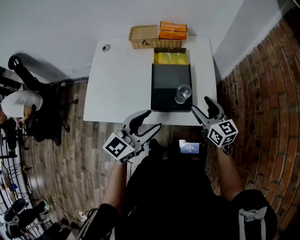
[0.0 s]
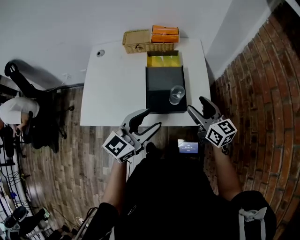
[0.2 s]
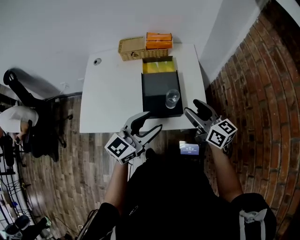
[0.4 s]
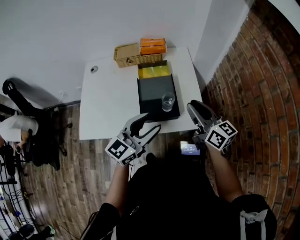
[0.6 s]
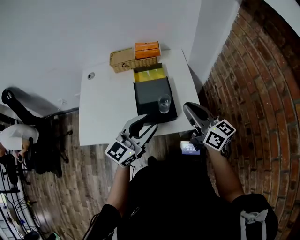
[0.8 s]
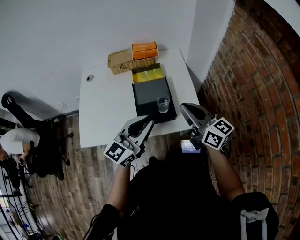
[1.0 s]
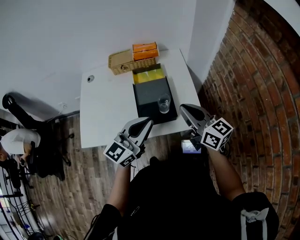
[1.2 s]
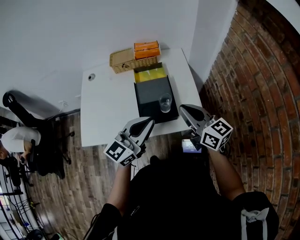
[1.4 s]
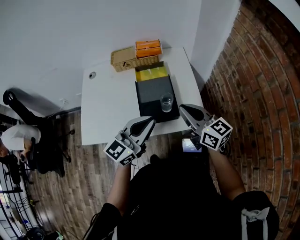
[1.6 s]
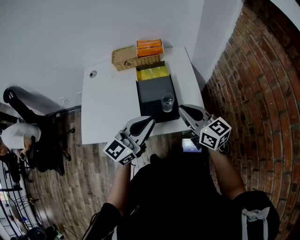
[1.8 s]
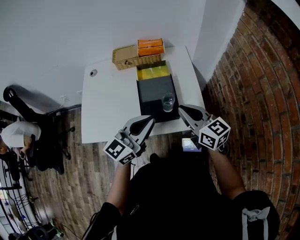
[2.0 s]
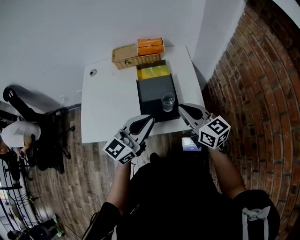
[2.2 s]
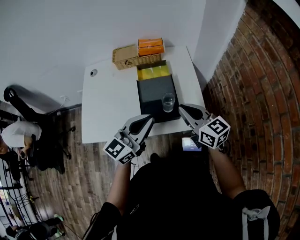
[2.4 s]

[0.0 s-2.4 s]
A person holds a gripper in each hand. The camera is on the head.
0.0 to 1.2 s: The right gripper travels upward by approximately 10 cm, and closes. Meanwhile the left gripper changes place by roughly 5 cm, and closes up.
1.2 to 2.4 s: The grippers move only a little.

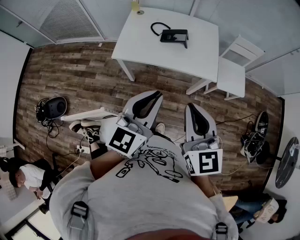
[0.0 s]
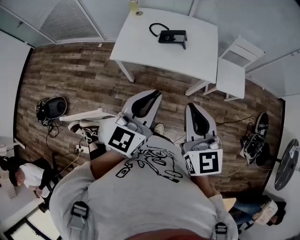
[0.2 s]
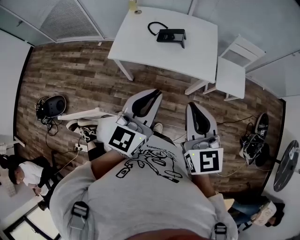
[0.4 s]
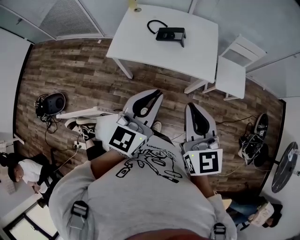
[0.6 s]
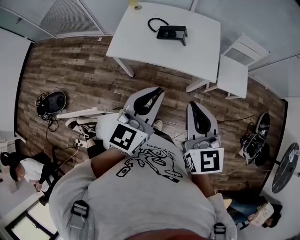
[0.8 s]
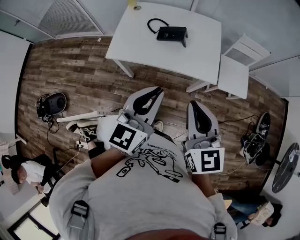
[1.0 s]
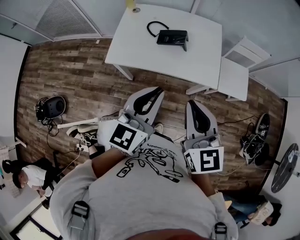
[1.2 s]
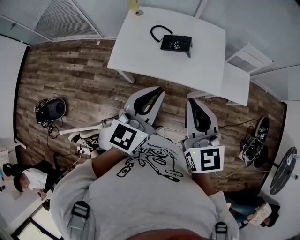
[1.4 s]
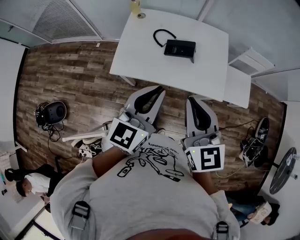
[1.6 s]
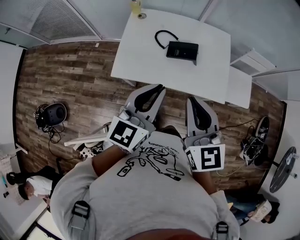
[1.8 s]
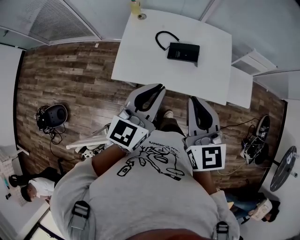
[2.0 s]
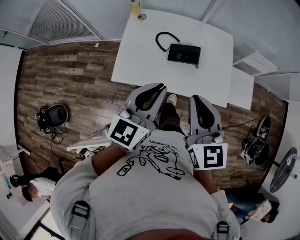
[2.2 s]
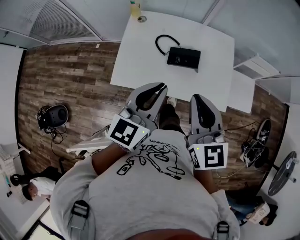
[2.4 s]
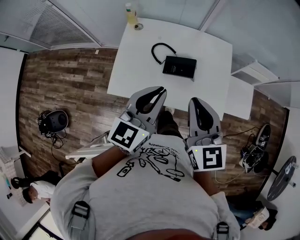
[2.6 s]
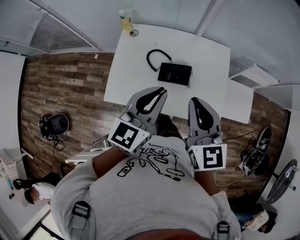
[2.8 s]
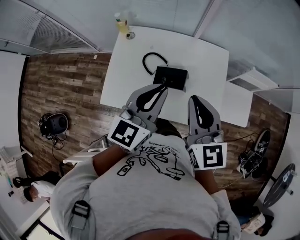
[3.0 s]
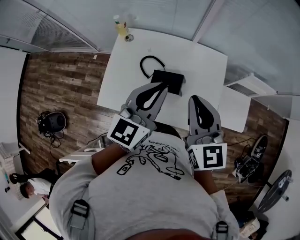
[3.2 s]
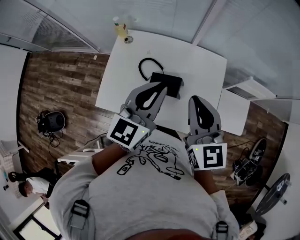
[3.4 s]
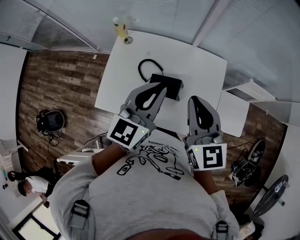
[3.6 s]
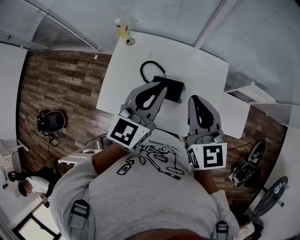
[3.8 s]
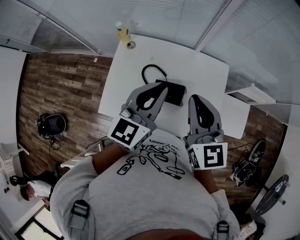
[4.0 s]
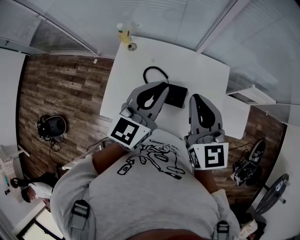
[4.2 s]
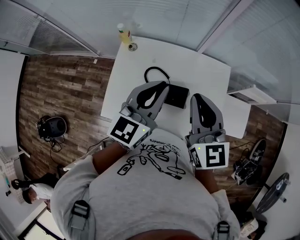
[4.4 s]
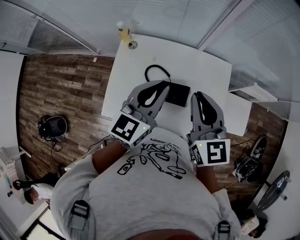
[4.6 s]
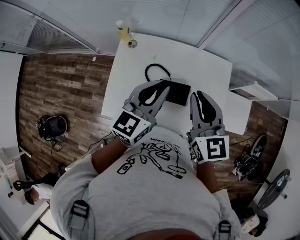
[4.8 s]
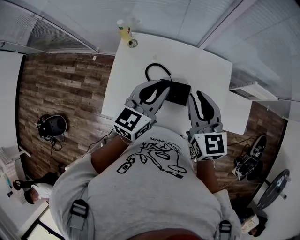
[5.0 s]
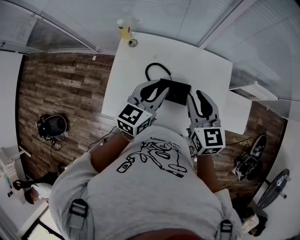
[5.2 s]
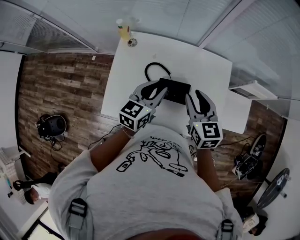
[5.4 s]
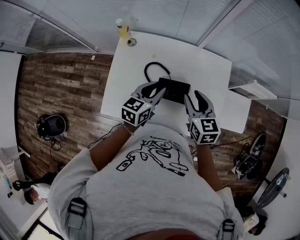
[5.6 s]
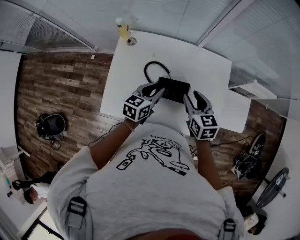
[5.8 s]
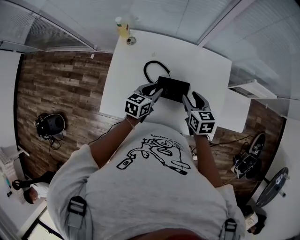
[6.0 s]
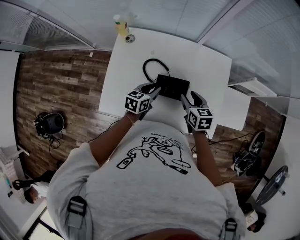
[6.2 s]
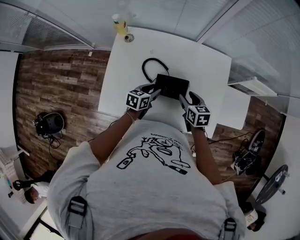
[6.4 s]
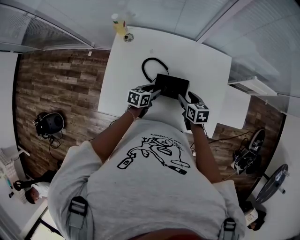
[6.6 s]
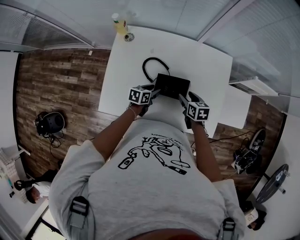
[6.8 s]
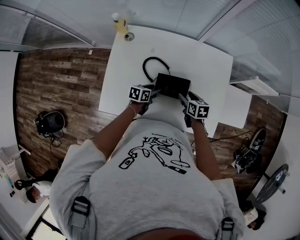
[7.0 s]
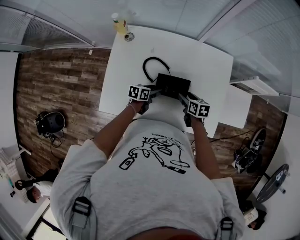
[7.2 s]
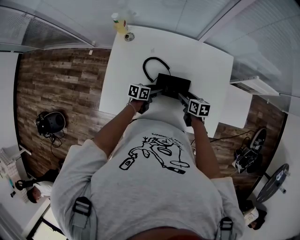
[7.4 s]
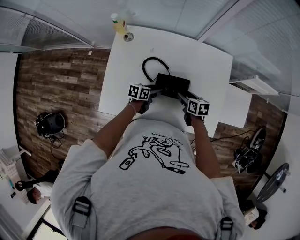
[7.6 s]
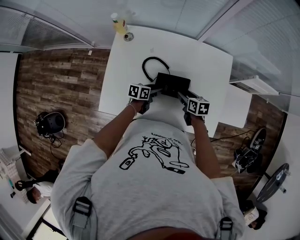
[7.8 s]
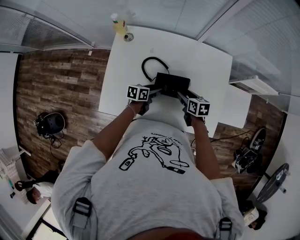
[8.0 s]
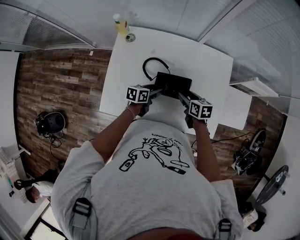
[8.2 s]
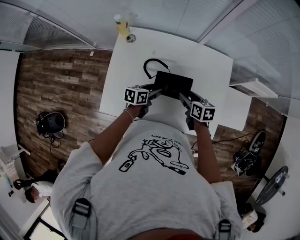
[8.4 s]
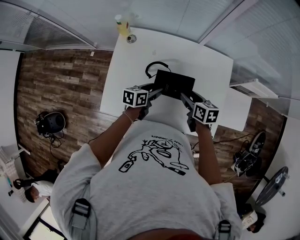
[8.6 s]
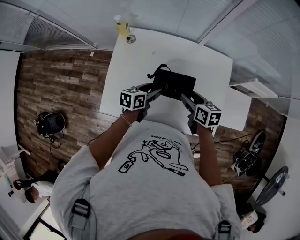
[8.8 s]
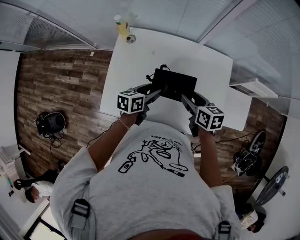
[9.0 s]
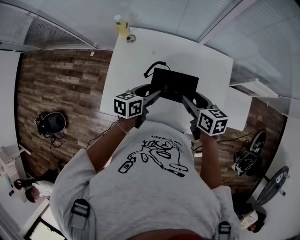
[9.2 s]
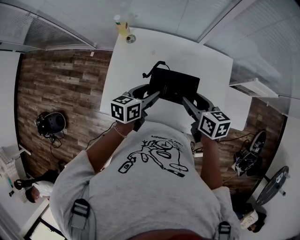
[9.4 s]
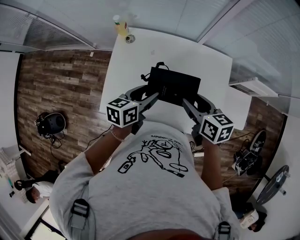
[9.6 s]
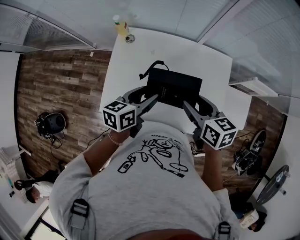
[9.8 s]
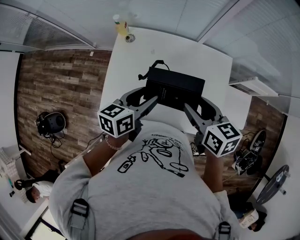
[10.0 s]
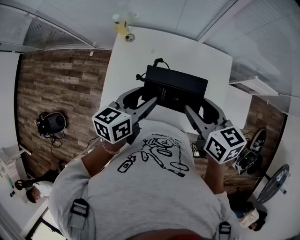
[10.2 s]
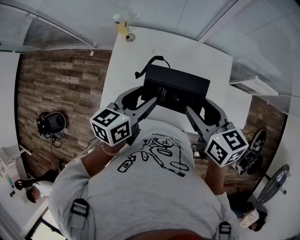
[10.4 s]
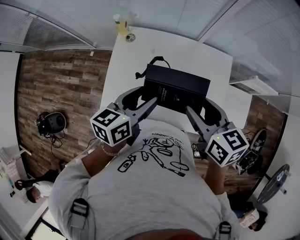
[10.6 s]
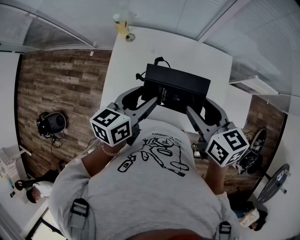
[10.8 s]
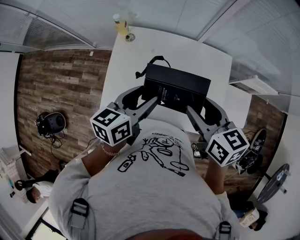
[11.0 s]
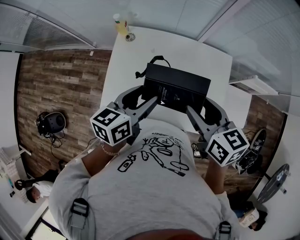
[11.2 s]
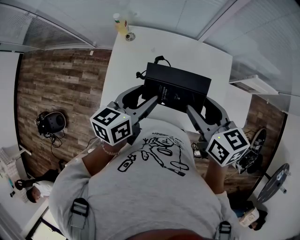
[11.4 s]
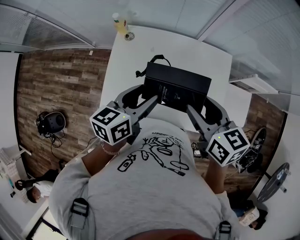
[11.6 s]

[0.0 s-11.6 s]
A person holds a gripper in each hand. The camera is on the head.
0.0 to 1.4 s: The grippers both shift forward by about 15 cm.
1.4 to 2.8 s: Both grippers travel together forward, about 25 cm.
2.8 to 4.4 s: Both grippers travel together forward, some 15 cm.
4.4 to 5.8 s: Both grippers move downward, about 20 cm. The right gripper rotates approximately 30 degrees, and opens its fingers; the left gripper turns by roughly 30 degrees.
5.8 to 7.2 s: The two grippers go roughly 20 cm downward. The left gripper rotates roughly 30 degrees, and opens its fingers. Meanwhile the right gripper rotates about 30 degrees, and opens.
7.2 to 8.8 s: Both grippers travel together upward, about 15 cm.
8.8 to 10.2 s: The two grippers go about 20 cm upward.
10.2 to 11.6 s: The grippers stay close to where they were, moving slightly.

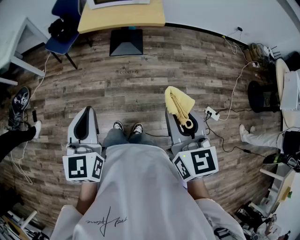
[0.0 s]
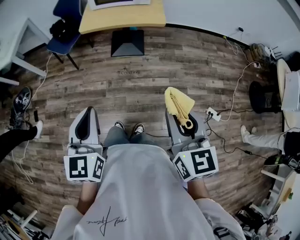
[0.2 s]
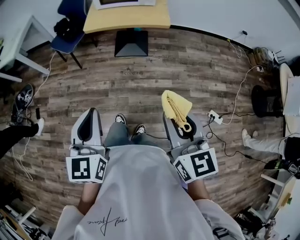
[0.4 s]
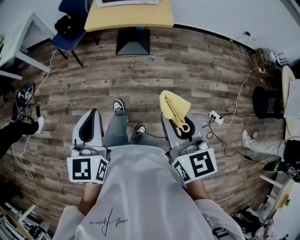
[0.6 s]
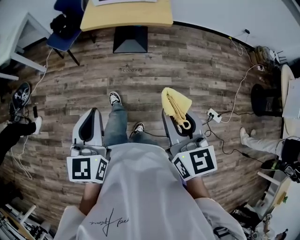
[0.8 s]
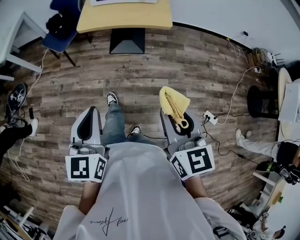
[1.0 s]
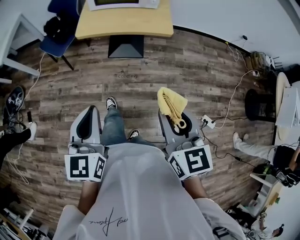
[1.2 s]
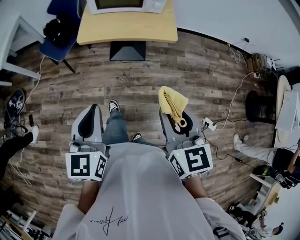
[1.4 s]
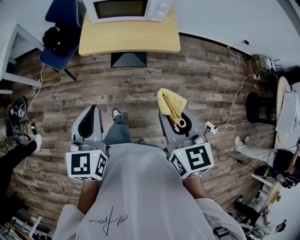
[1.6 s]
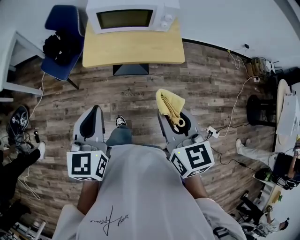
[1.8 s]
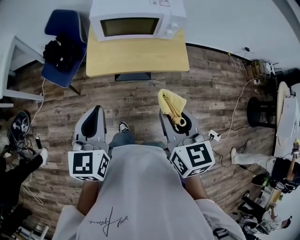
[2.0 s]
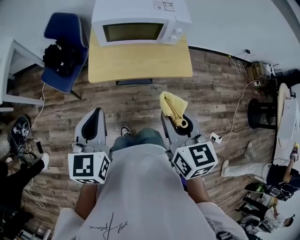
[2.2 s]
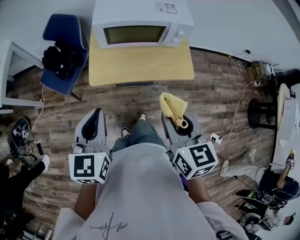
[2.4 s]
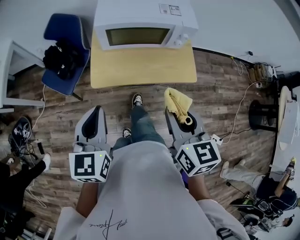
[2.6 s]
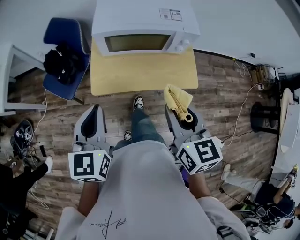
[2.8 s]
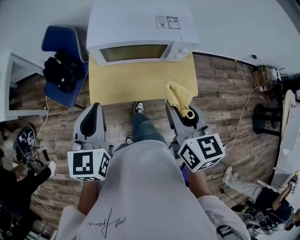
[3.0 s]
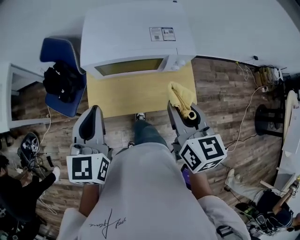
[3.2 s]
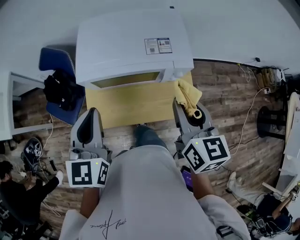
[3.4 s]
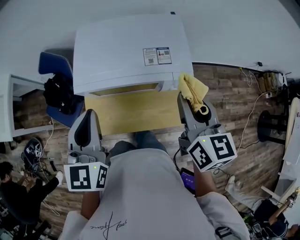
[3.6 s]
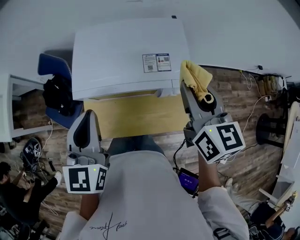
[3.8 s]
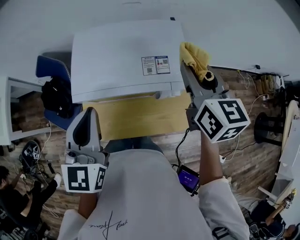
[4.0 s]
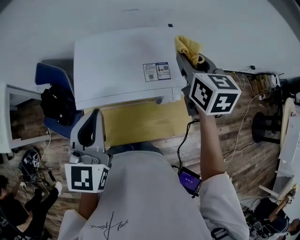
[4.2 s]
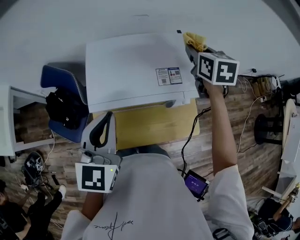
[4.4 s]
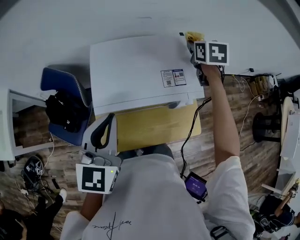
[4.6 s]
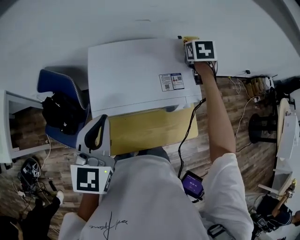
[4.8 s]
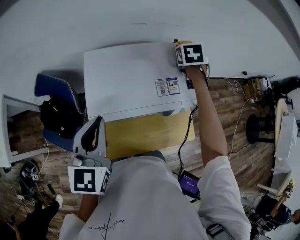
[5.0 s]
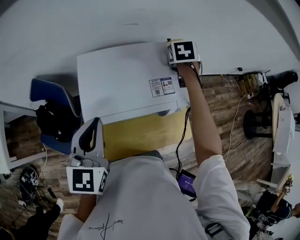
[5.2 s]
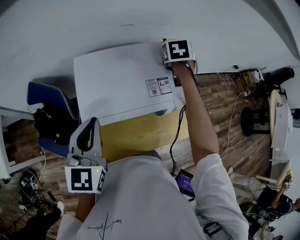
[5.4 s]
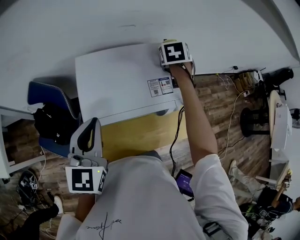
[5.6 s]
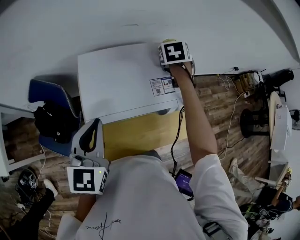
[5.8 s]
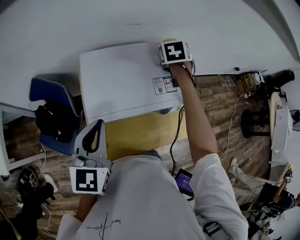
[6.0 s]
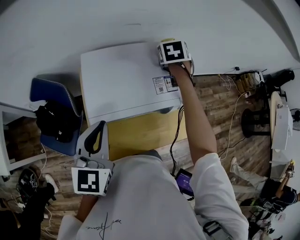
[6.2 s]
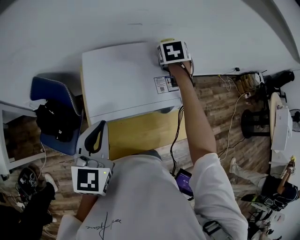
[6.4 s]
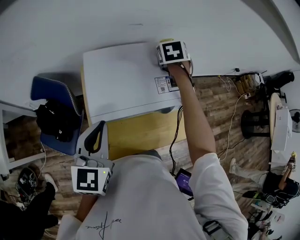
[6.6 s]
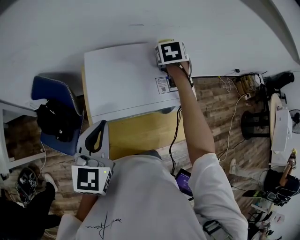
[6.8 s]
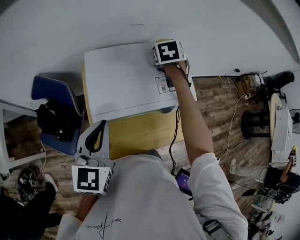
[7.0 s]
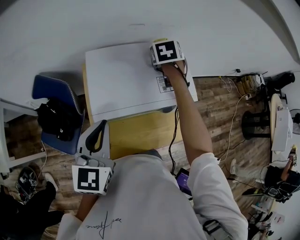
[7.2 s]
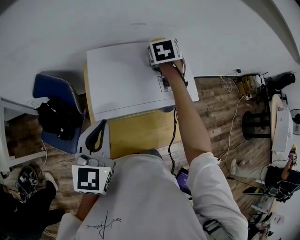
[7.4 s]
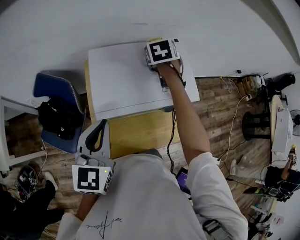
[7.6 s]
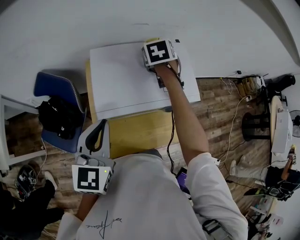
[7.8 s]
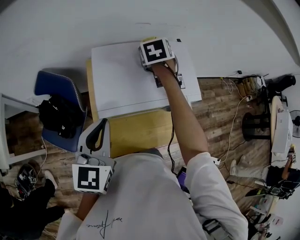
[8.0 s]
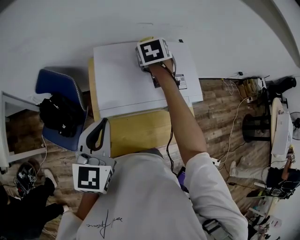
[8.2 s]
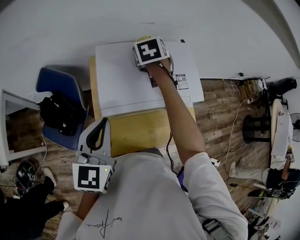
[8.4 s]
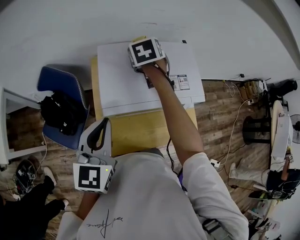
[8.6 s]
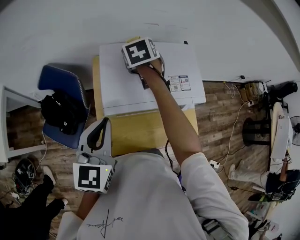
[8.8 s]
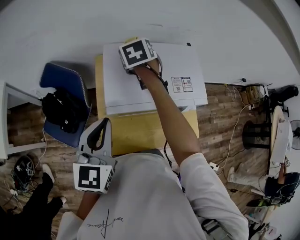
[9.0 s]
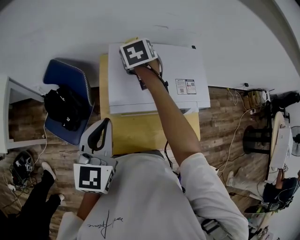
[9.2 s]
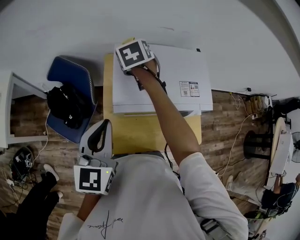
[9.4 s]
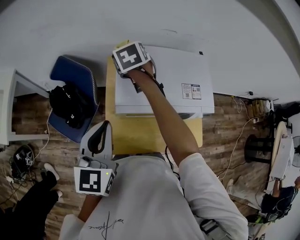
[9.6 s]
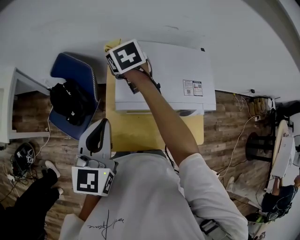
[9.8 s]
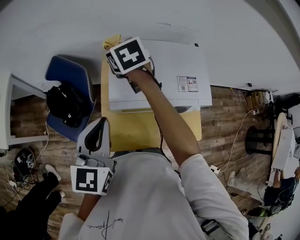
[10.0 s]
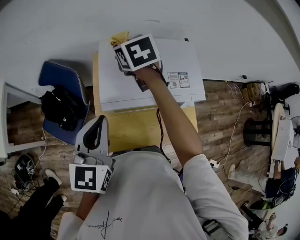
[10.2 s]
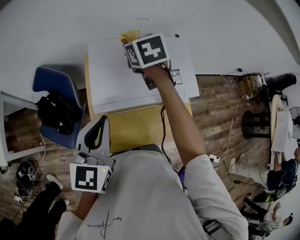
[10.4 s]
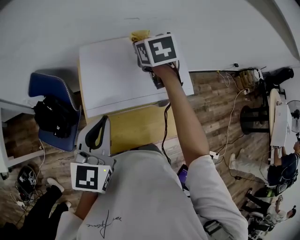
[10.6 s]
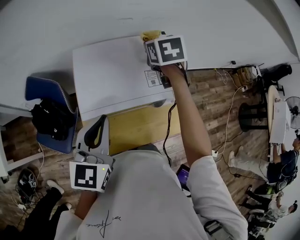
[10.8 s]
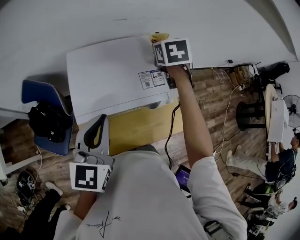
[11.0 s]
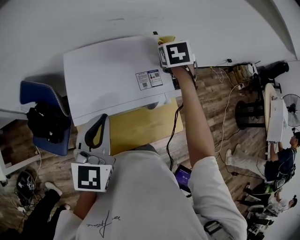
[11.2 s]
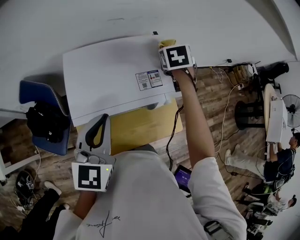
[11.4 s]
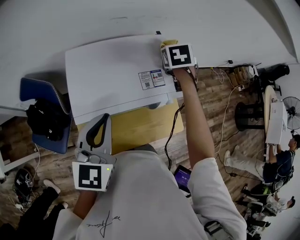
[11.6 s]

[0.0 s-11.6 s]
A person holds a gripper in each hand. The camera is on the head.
0.0 to 1.4 s: The grippers both shift forward by approximately 20 cm.
1.4 to 2.8 s: The grippers both shift forward by roughly 35 cm.
2.8 to 4.4 s: The left gripper goes about 25 cm forward. The right gripper moves forward, roughly 50 cm.
4.4 to 5.8 s: The left gripper moves to the left, some 5 cm, while the right gripper travels downward and forward by about 10 cm, and rotates some 30 degrees.
5.8 to 7.2 s: The right gripper travels to the left by approximately 5 cm.
7.2 to 8.8 s: The right gripper travels to the left by roughly 15 cm.
8.8 to 10.2 s: The right gripper is displaced to the left and upward by about 5 cm.
10.2 to 11.6 s: The right gripper ends up about 35 cm from where it was, and swivels some 30 degrees. Meanwhile the left gripper moves some 10 cm.
